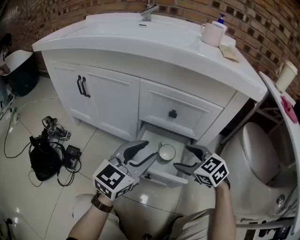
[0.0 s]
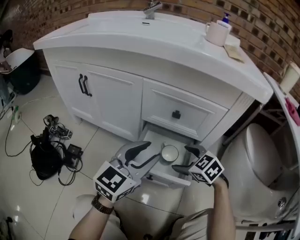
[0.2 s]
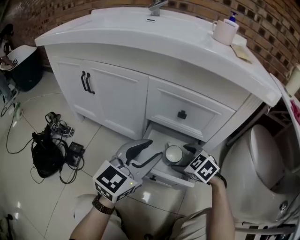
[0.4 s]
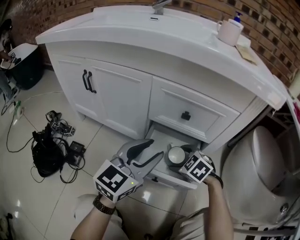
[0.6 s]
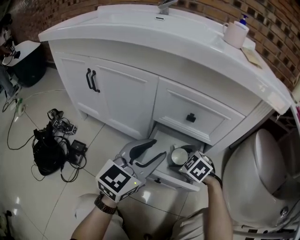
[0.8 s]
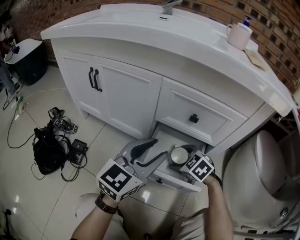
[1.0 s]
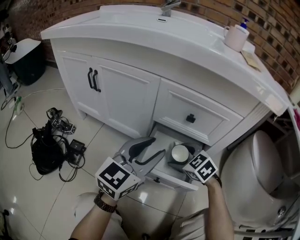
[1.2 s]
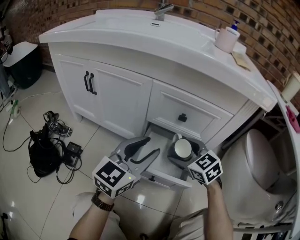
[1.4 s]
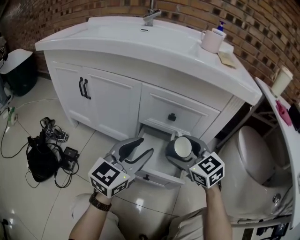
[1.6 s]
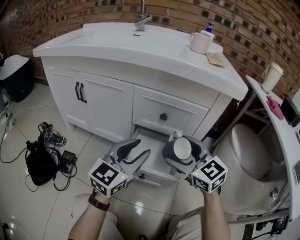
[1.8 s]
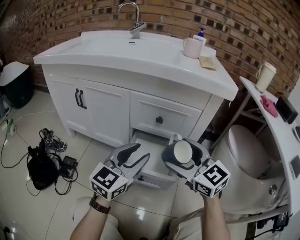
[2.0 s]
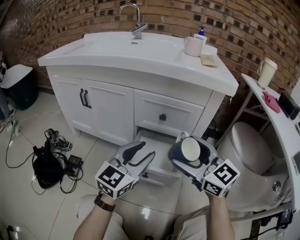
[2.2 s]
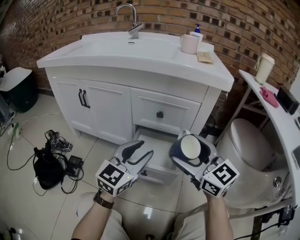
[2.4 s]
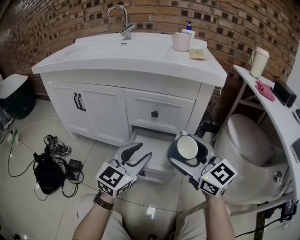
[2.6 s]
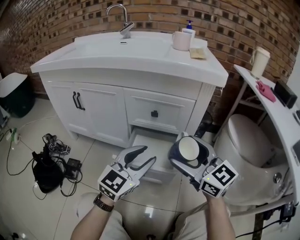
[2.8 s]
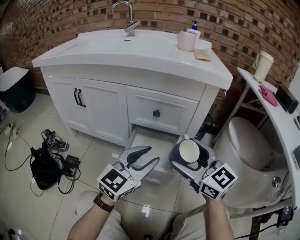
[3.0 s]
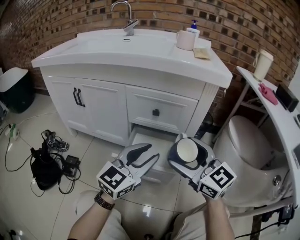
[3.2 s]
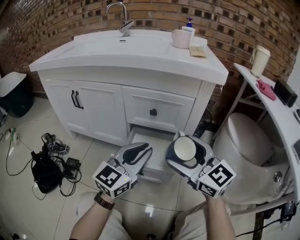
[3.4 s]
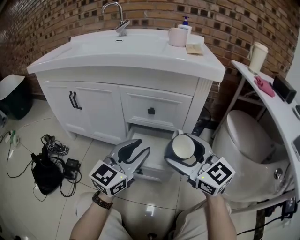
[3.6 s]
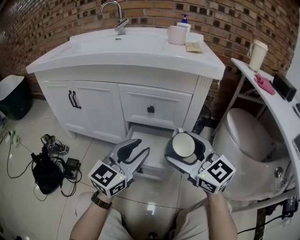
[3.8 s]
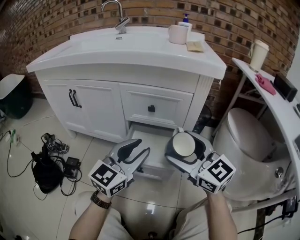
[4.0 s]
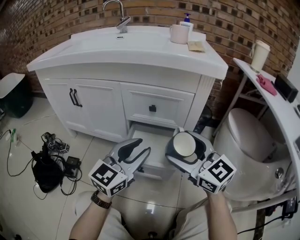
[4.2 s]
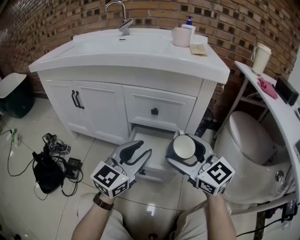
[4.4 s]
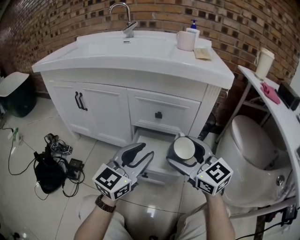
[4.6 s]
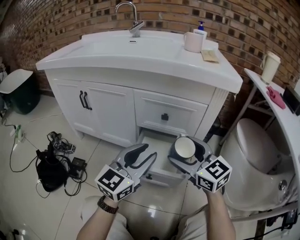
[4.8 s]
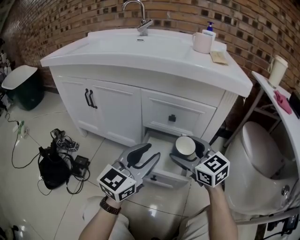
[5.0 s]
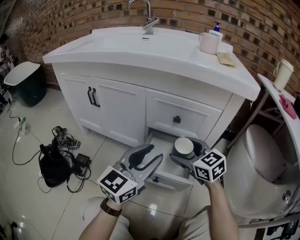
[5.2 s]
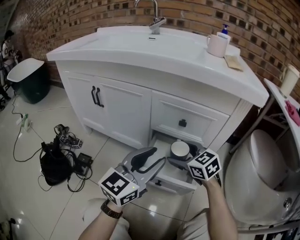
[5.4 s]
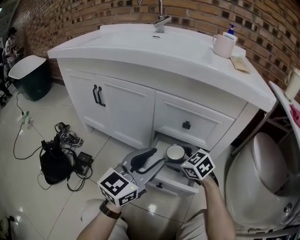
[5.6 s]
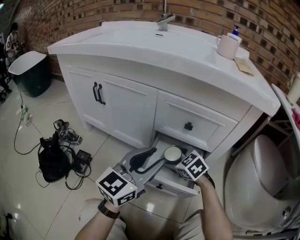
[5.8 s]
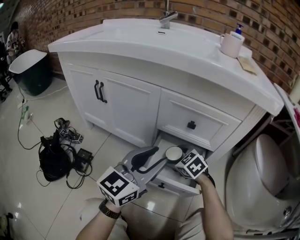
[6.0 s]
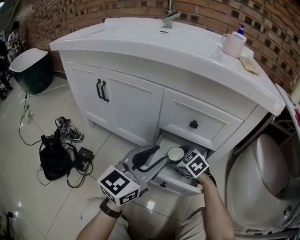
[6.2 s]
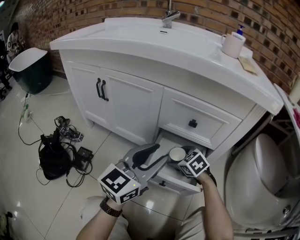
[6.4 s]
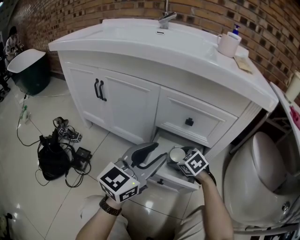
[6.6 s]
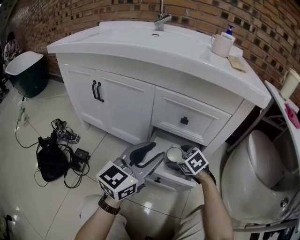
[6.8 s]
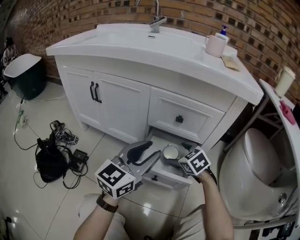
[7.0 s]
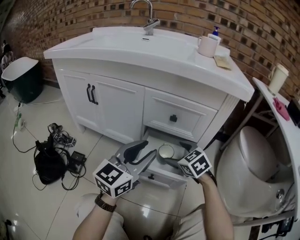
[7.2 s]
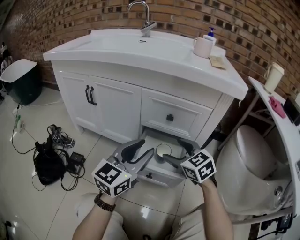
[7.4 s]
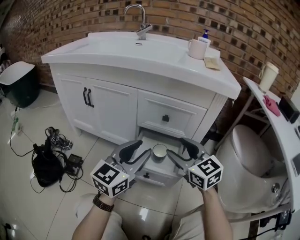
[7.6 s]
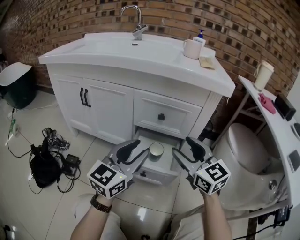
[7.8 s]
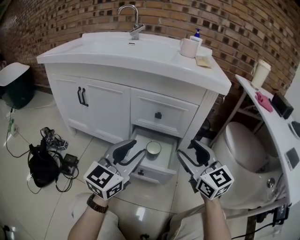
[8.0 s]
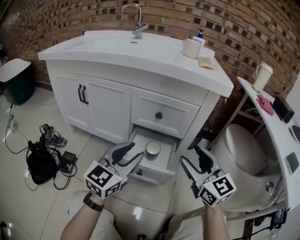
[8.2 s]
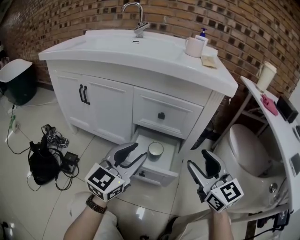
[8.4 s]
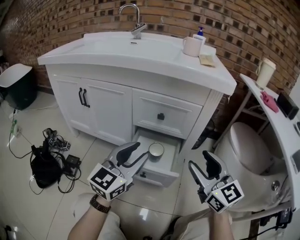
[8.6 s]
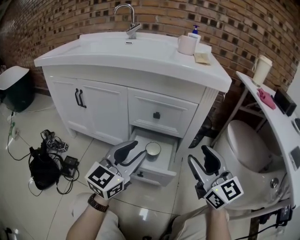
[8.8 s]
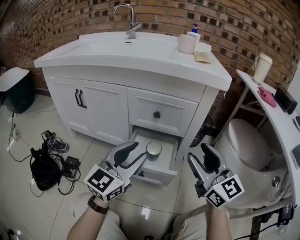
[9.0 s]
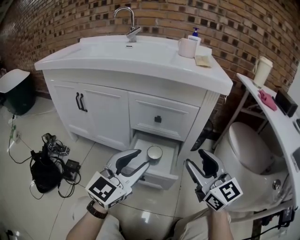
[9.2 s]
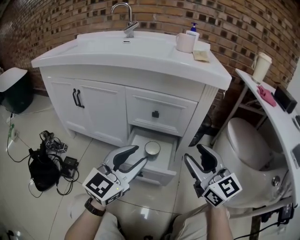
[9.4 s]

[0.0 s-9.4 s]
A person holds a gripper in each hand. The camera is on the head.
0.0 to 1.6 s: The right gripper moves upward, approximately 10 cm.
1.6 to 3.2 s: The left gripper is displaced to the right and backward by approximately 10 cm; the right gripper travels backward and upward by about 15 cm, and swivels some 20 degrees.
3.2 to 4.8 s: The right gripper changes place by about 5 cm.
4.8 to 6.2 s: The left gripper shifts by some 5 cm, while the right gripper heads downward and forward, covering about 25 cm, and tips its fingers downward by approximately 40 degrees.
6.2 to 7.8 s: The left gripper changes place by about 5 cm. Meanwhile the right gripper is displaced upward and backward by some 25 cm, and tilts its fingers about 40 degrees upward.
7.8 to 9.4 s: The right gripper travels to the right by roughly 5 cm.

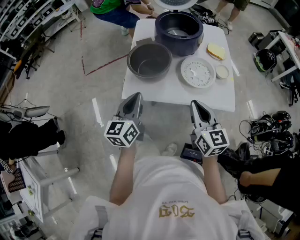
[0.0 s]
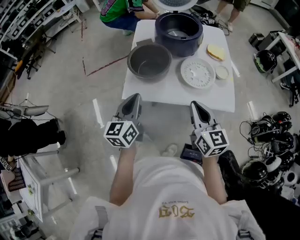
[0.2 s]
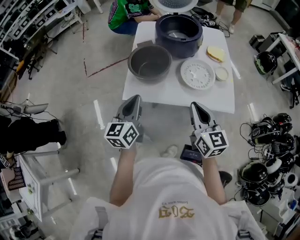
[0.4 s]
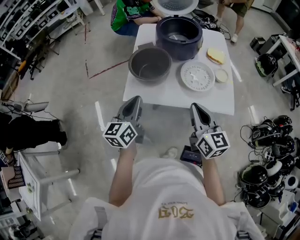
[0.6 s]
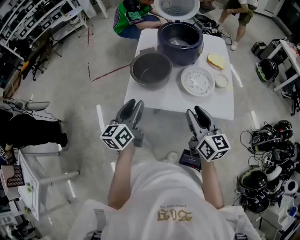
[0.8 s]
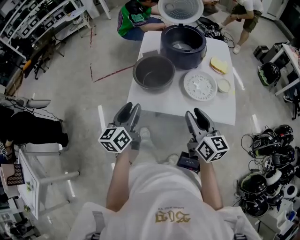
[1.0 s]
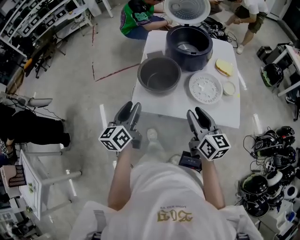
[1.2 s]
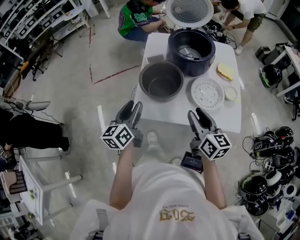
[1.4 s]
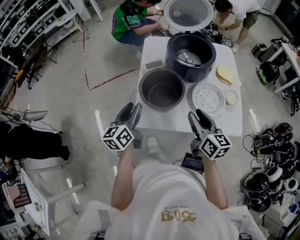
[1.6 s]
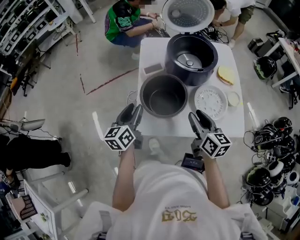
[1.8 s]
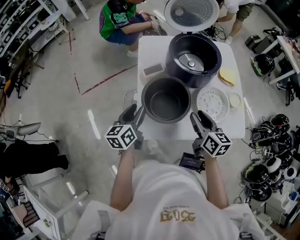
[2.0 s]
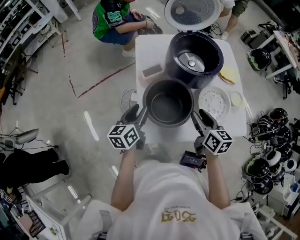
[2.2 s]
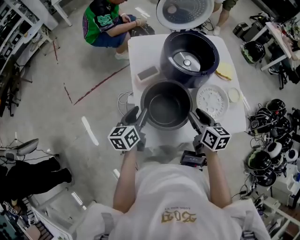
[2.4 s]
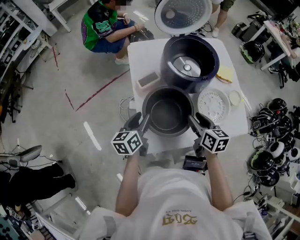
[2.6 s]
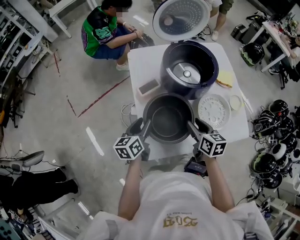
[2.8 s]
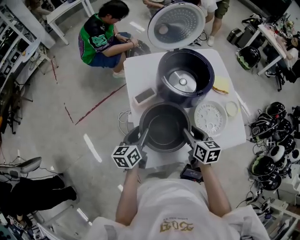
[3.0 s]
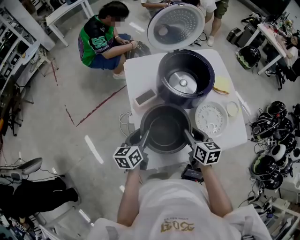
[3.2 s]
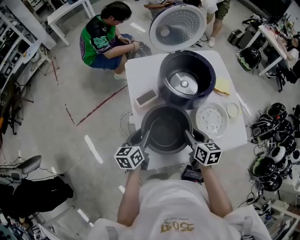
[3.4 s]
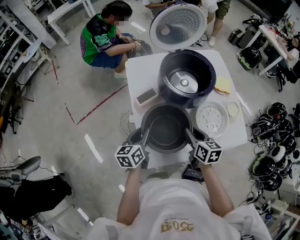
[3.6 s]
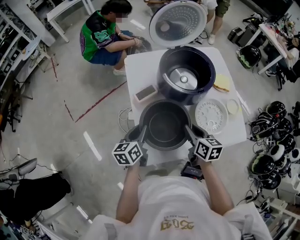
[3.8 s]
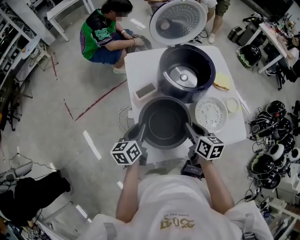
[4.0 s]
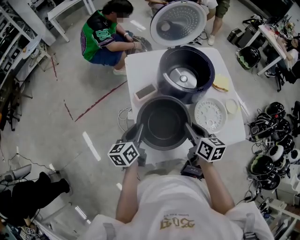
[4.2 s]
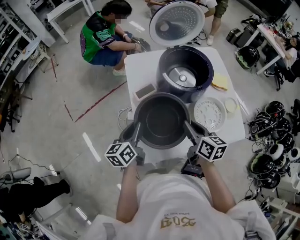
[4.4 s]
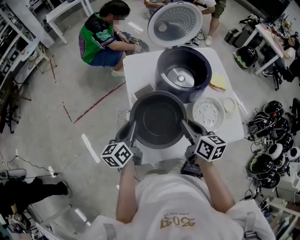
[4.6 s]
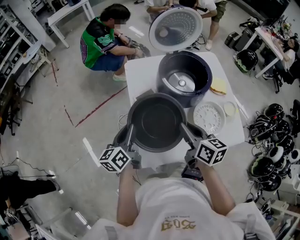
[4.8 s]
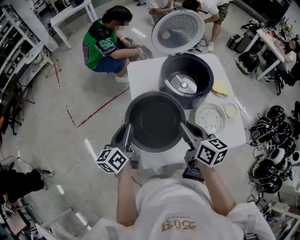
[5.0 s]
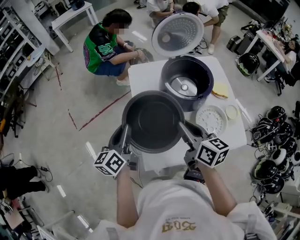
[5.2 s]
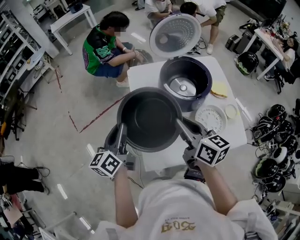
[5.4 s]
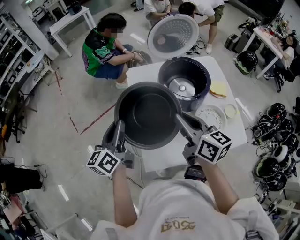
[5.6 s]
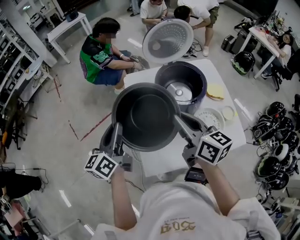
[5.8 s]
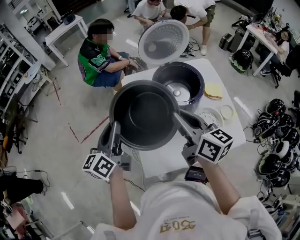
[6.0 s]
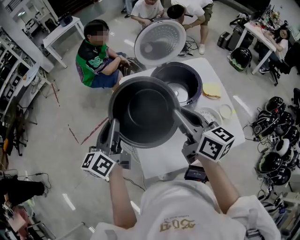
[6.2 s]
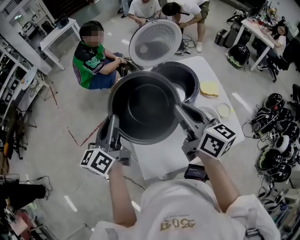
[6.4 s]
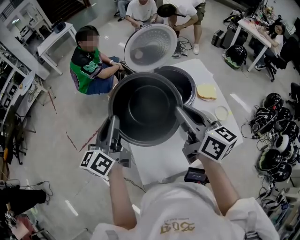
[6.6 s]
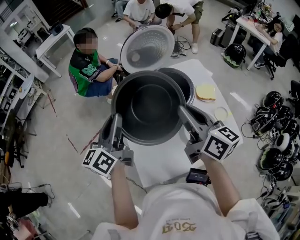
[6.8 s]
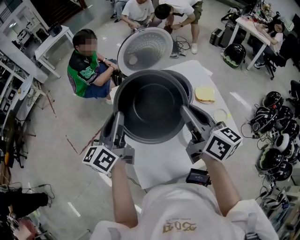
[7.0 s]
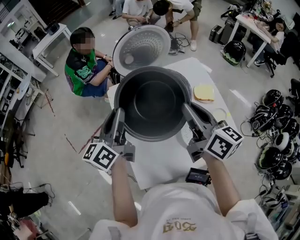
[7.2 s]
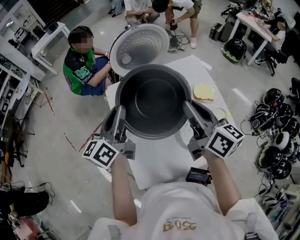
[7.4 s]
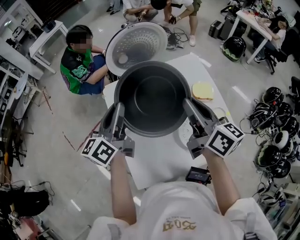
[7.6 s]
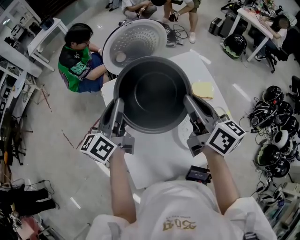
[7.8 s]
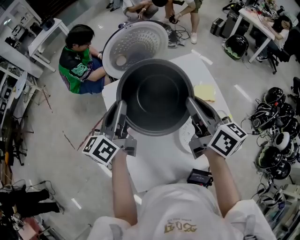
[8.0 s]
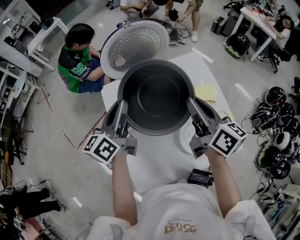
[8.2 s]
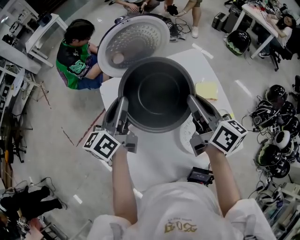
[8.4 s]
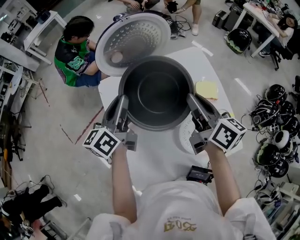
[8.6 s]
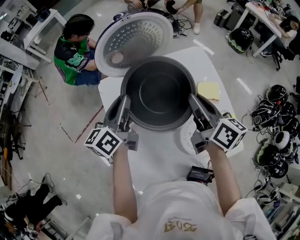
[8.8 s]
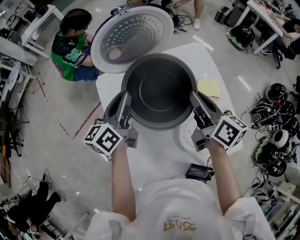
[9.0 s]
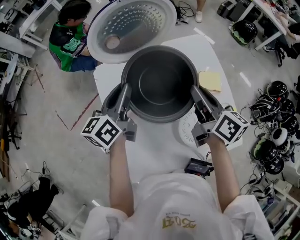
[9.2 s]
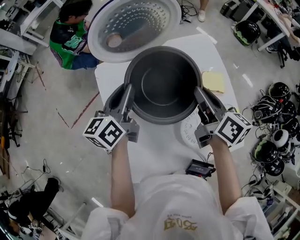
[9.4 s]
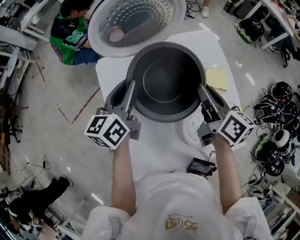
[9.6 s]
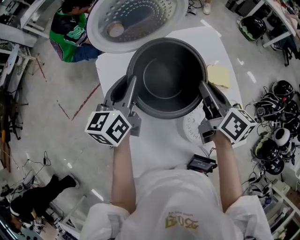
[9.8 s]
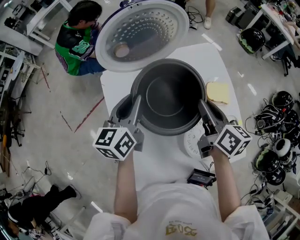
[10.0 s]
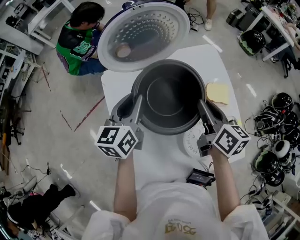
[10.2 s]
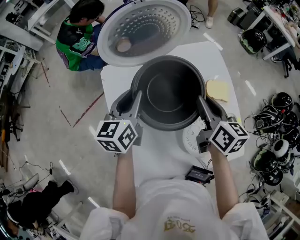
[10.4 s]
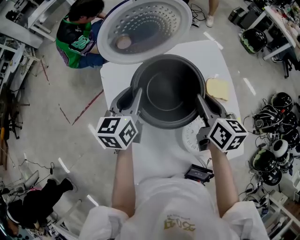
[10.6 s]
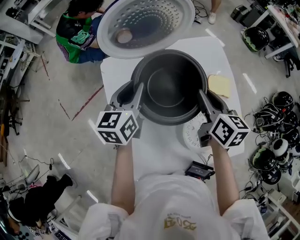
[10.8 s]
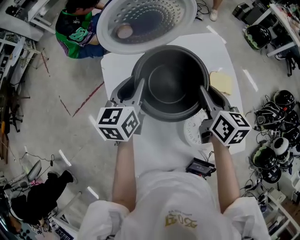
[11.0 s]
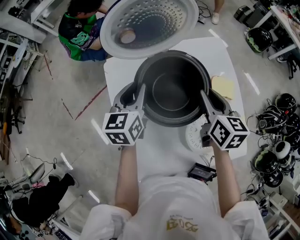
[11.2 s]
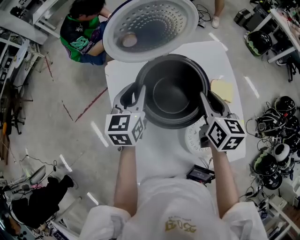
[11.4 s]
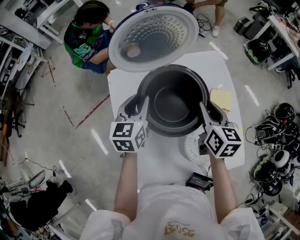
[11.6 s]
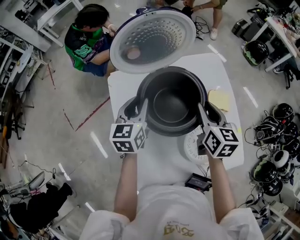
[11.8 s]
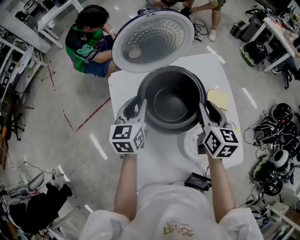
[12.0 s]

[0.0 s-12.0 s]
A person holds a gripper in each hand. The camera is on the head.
0.0 to 1.6 s: The right gripper heads forward, covering some 10 cm, and opens up. Meanwhile the left gripper is displaced forward and to the left by roughly 15 cm, and opens up.
1.6 to 3.0 s: Both grippers travel together forward and downward, approximately 15 cm. The left gripper changes its angle by approximately 20 degrees. Meanwhile the right gripper turns by about 20 degrees.
3.0 to 4.4 s: The left gripper closes up. The right gripper moves upward, approximately 5 cm, and closes its fingers.
4.4 to 6.0 s: Both grippers travel together upward, some 20 cm. The right gripper turns by some 20 degrees.
6.0 to 7.6 s: Both grippers move to the right and forward, approximately 20 cm.
7.6 to 9.0 s: Both grippers travel together forward and downward, approximately 10 cm.
9.0 to 10.4 s: The right gripper moves some 5 cm.
10.4 to 12.0 s: There are only small adjustments of the grippers.

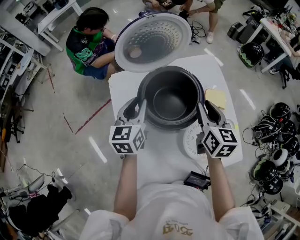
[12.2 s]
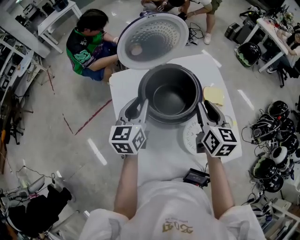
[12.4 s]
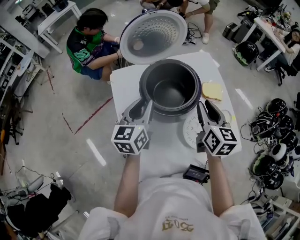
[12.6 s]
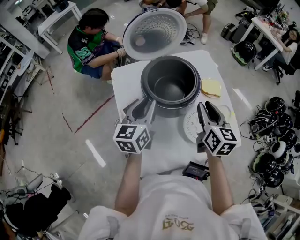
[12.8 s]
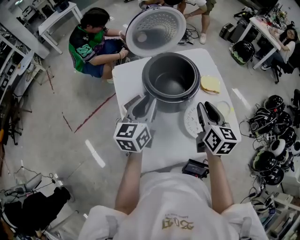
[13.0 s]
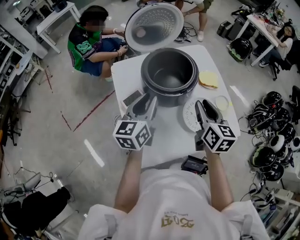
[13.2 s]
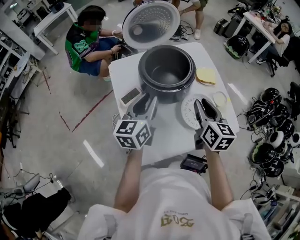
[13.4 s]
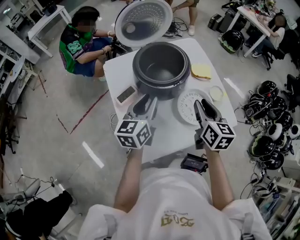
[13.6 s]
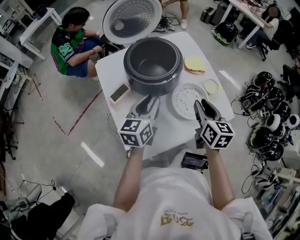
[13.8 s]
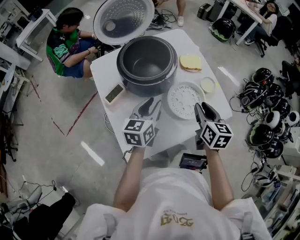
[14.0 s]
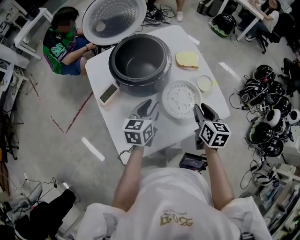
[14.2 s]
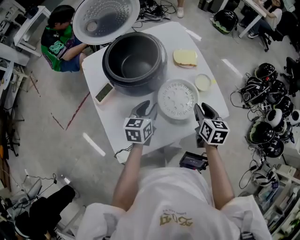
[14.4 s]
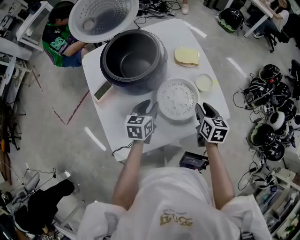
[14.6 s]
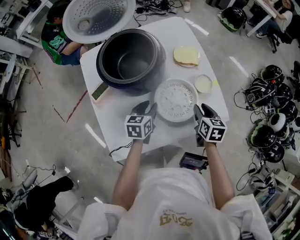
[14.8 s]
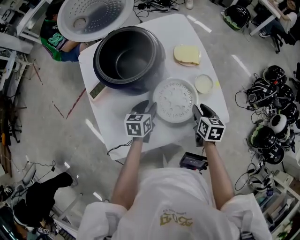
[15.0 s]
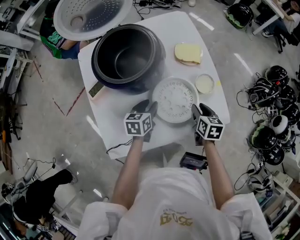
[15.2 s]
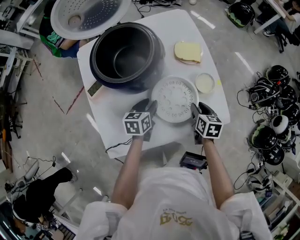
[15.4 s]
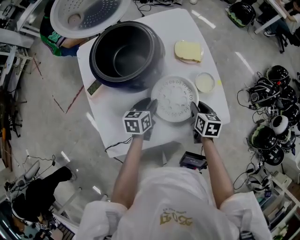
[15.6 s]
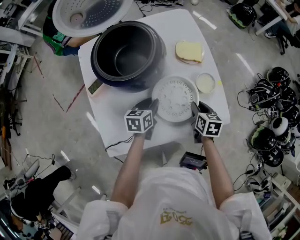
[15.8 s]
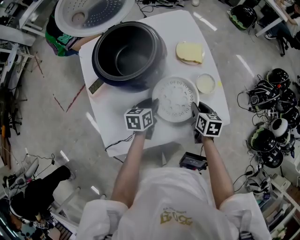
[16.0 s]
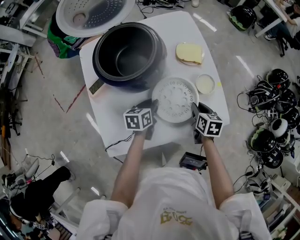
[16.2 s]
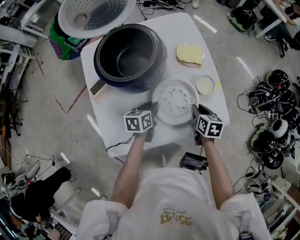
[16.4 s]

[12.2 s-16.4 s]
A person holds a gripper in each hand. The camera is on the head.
12.2 to 13.6 s: The left gripper shifts roughly 15 cm backward and to the right, while the right gripper goes roughly 20 cm backward.
13.6 to 15.0 s: Both grippers move downward and to the right, about 25 cm. The right gripper turns by some 20 degrees. The left gripper changes its angle by approximately 30 degrees.
15.0 to 16.4 s: The grippers move only a little.
